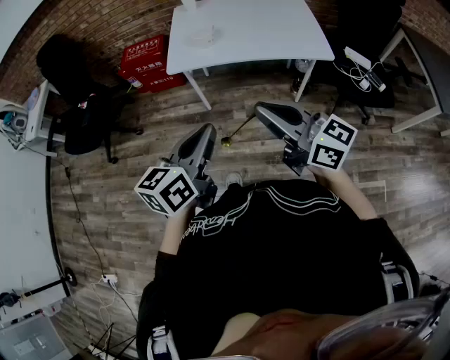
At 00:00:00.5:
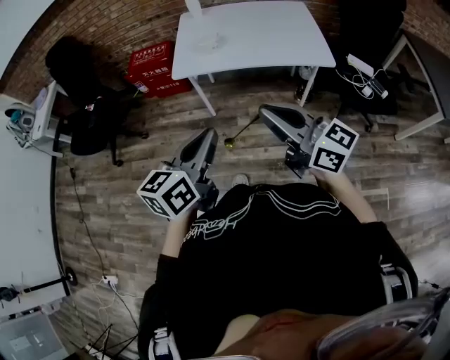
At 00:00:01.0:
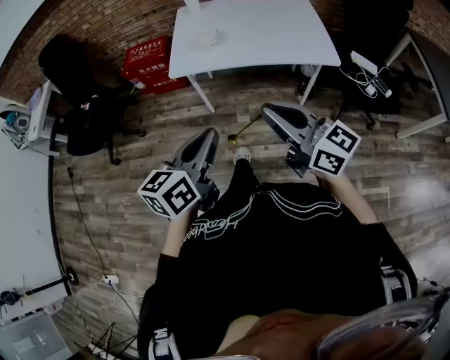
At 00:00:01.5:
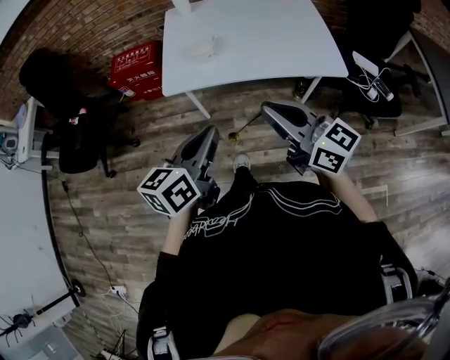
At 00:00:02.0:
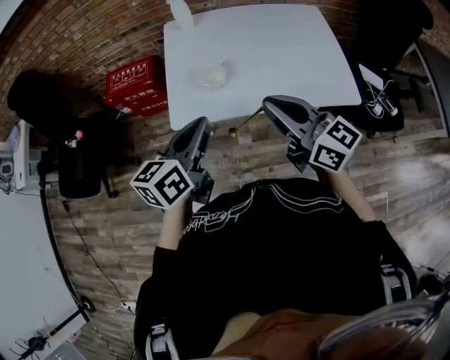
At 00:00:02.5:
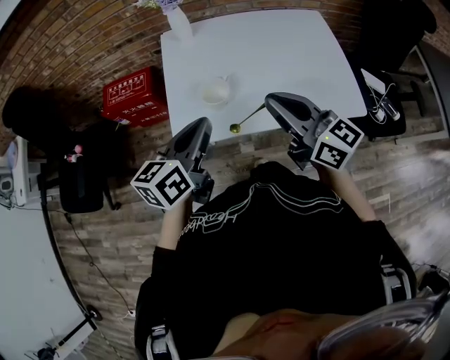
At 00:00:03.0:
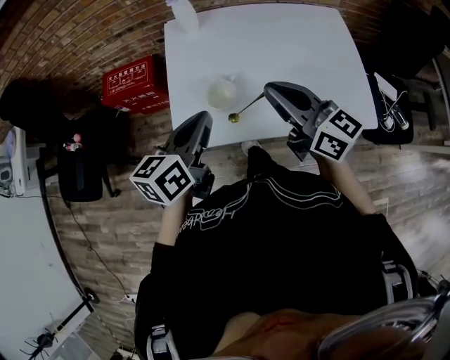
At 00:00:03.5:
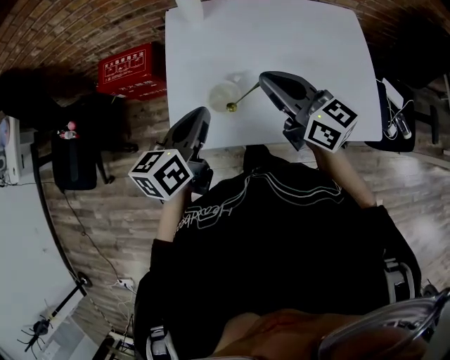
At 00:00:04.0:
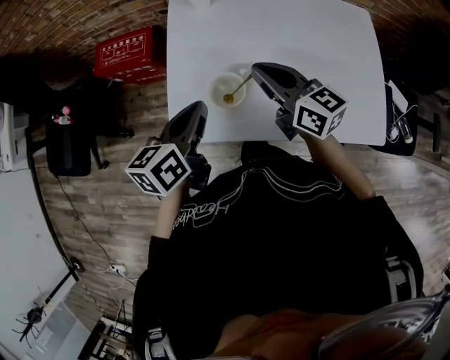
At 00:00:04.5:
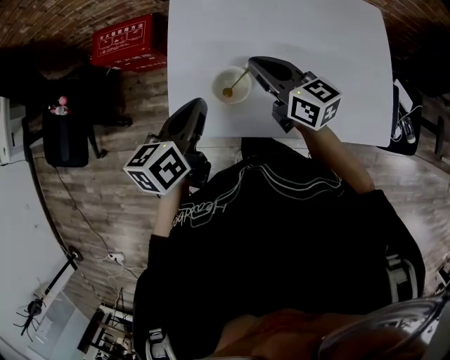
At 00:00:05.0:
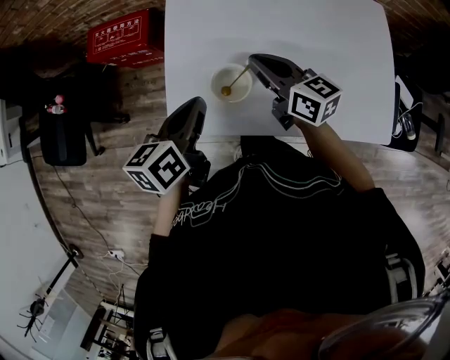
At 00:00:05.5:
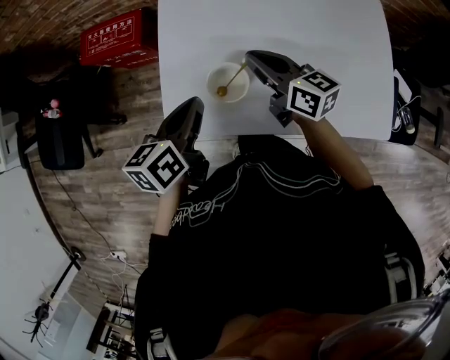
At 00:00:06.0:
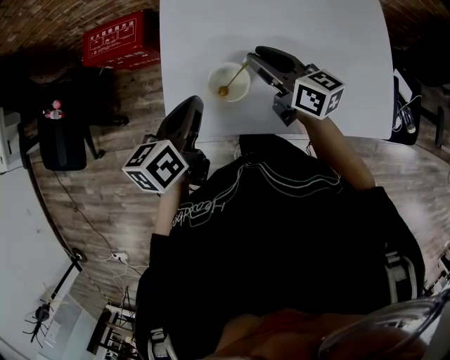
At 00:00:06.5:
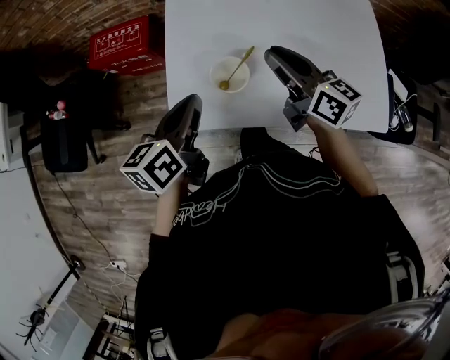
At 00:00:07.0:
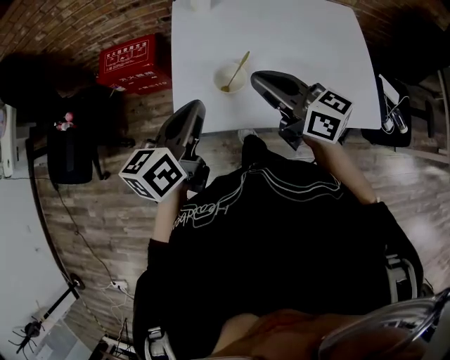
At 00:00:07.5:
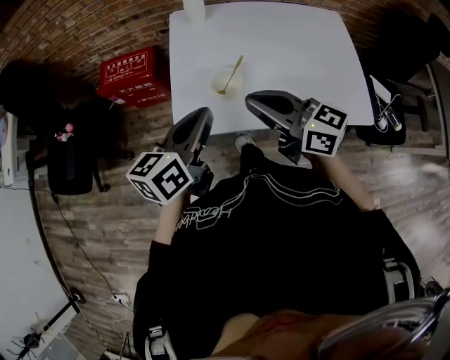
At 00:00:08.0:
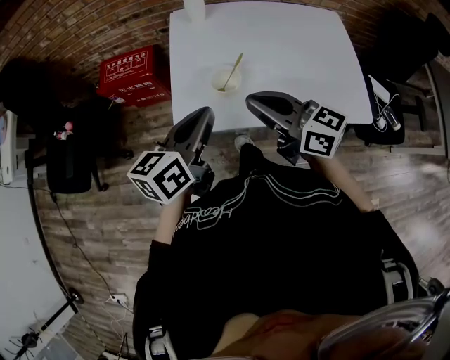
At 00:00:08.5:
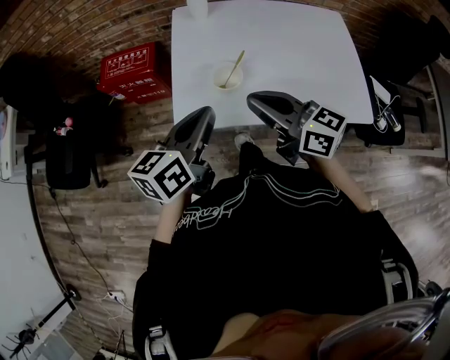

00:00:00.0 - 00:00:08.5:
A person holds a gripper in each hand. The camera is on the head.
00:00:00.0 - 00:00:02.0: Both grippers travel together forward, approximately 35 cm.
00:00:02.0 - 00:00:04.0: Both grippers travel together forward and downward, about 25 cm.
00:00:06.5 - 00:00:08.5: The right gripper moves backward, to the left and upward, some 20 cm, while the left gripper goes some 10 cm backward and upward.

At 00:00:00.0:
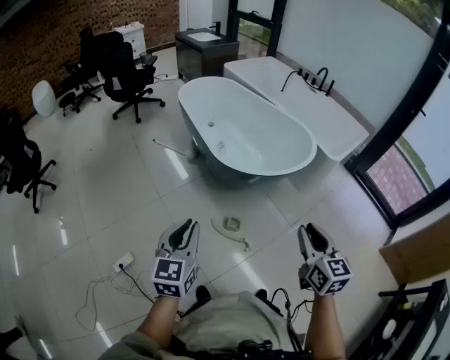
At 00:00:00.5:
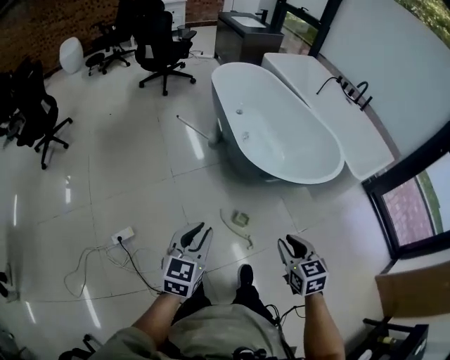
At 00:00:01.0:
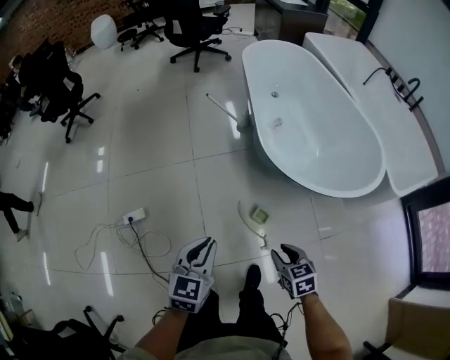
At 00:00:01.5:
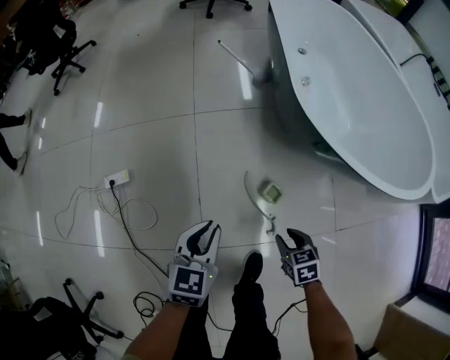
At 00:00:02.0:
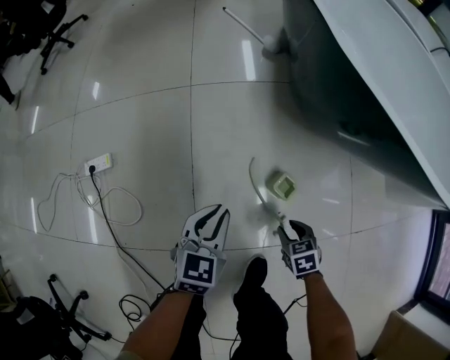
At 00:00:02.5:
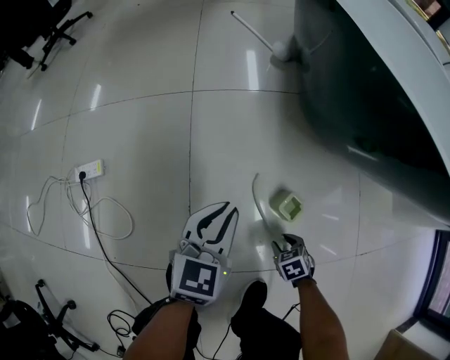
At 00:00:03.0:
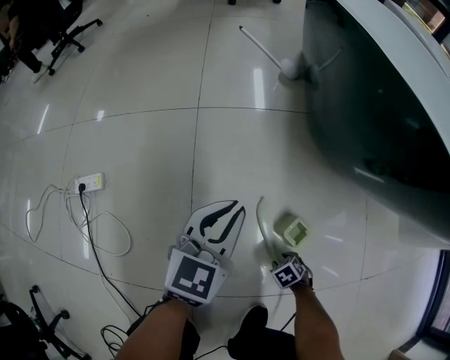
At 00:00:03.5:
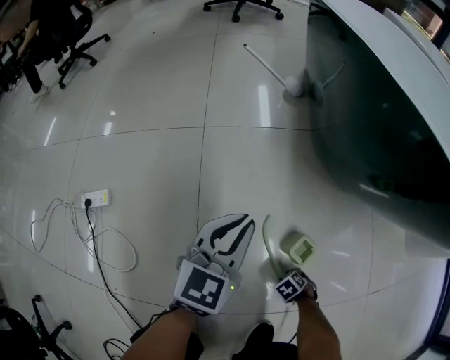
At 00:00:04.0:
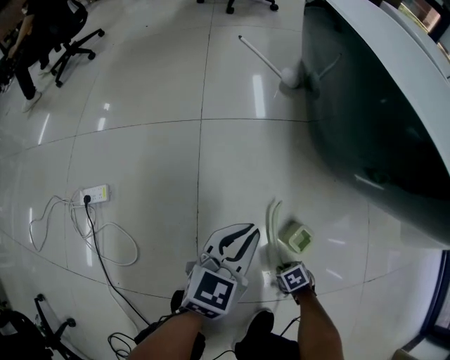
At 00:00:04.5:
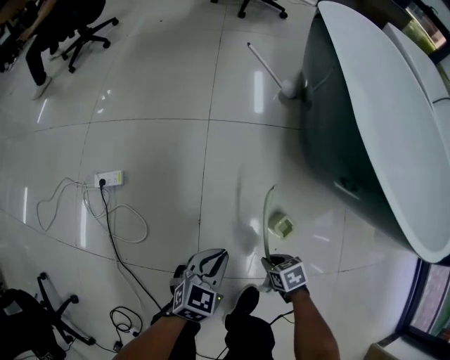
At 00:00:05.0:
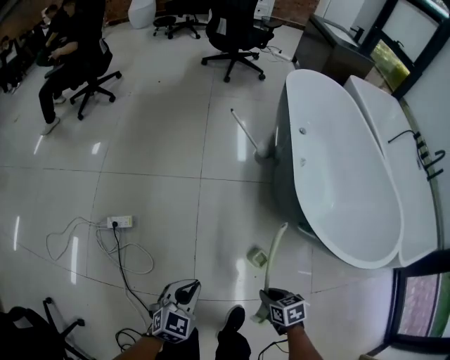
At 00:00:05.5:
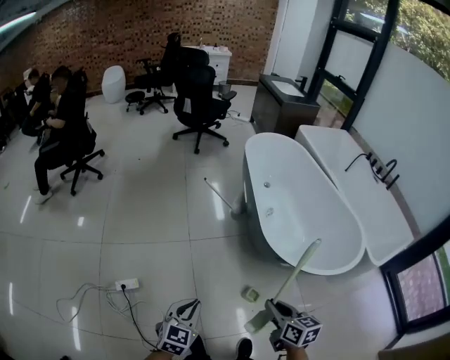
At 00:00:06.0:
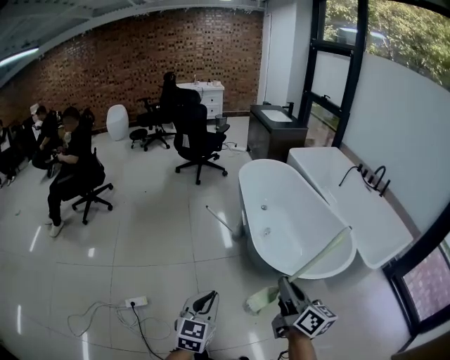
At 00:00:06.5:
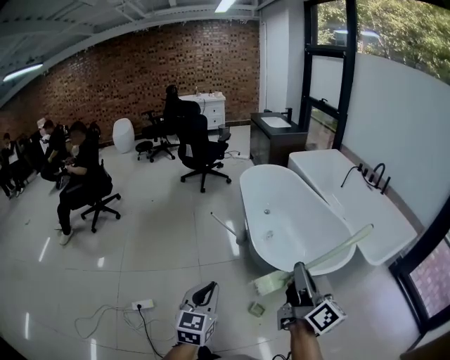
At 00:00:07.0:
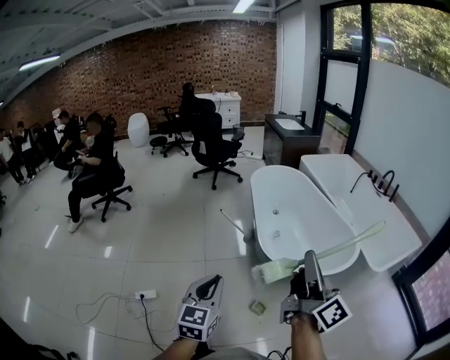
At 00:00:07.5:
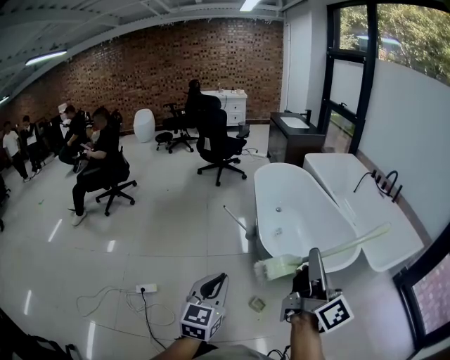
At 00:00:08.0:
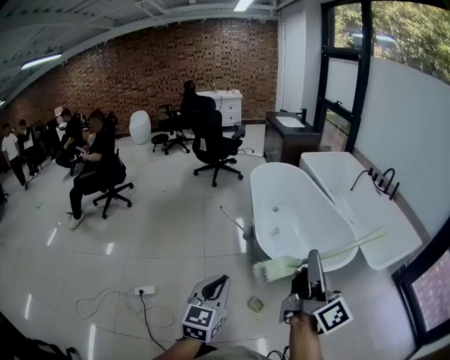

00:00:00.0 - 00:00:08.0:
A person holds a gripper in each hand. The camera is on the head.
00:00:00.0 - 00:00:02.0: Both grippers travel together downward, about 1 m. The right gripper angles its fingers downward, by roughly 50 degrees, while the left gripper swivels some 30 degrees.
00:00:02.0 - 00:00:04.0: The right gripper goes some 25 cm downward, changes its angle by roughly 20 degrees, and closes up. Meanwhile the left gripper moves about 15 cm.
00:00:04.0 - 00:00:06.0: Both grippers move upward, roughly 1 m. The right gripper tips its fingers upward by about 80 degrees.
00:00:06.0 - 00:00:08.0: The right gripper moves to the right, backward and upward, roughly 30 cm, and changes its angle by some 30 degrees. The left gripper moves to the right and backward, some 20 cm.

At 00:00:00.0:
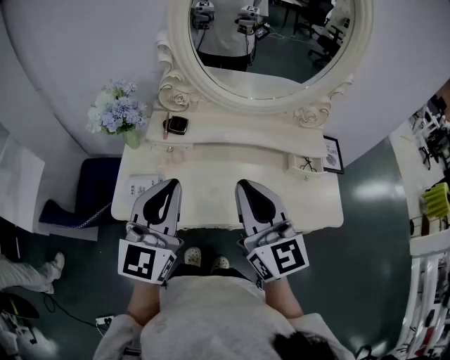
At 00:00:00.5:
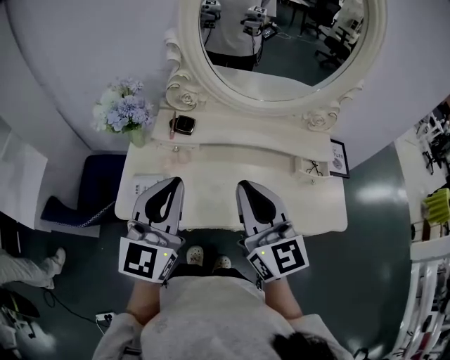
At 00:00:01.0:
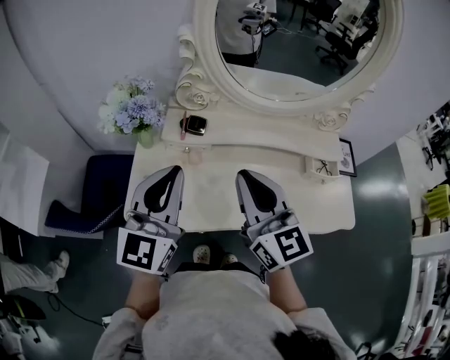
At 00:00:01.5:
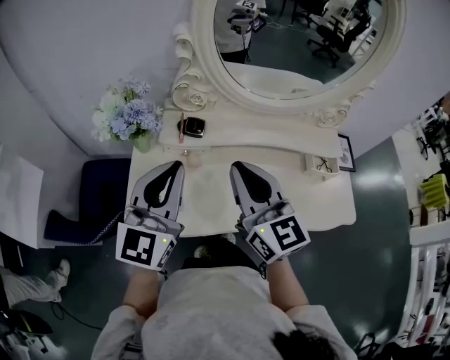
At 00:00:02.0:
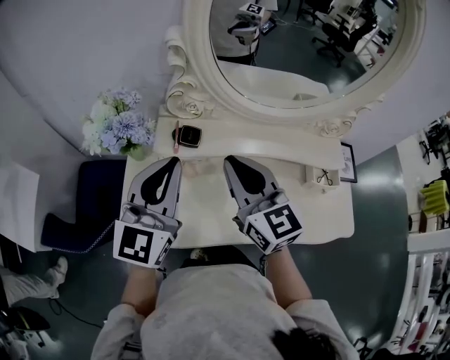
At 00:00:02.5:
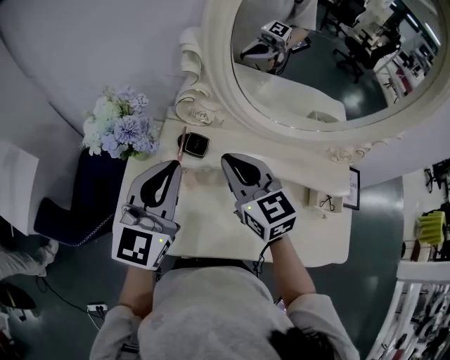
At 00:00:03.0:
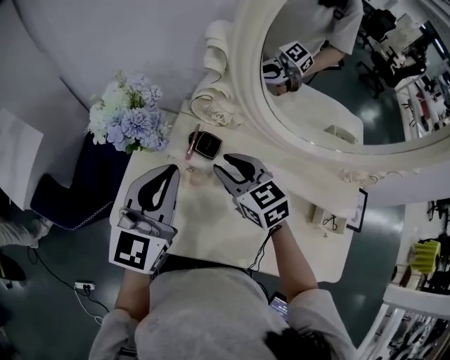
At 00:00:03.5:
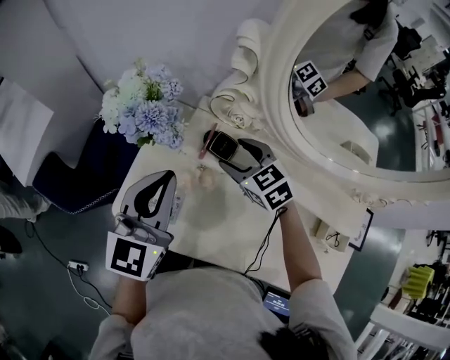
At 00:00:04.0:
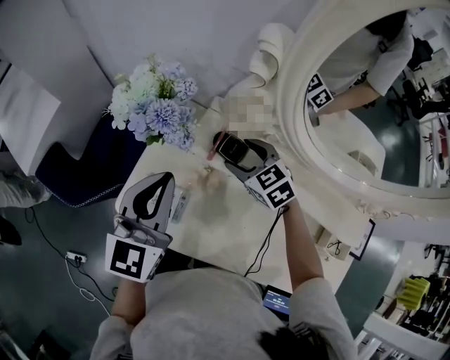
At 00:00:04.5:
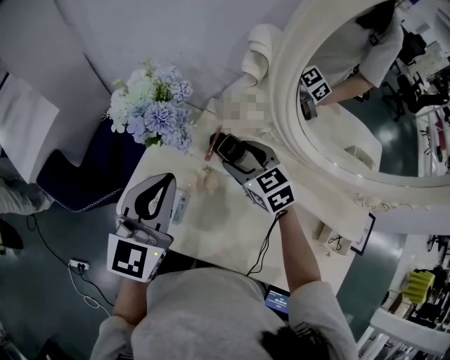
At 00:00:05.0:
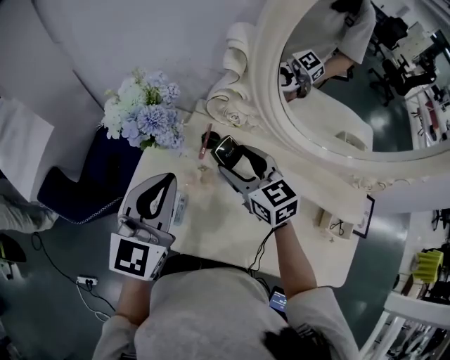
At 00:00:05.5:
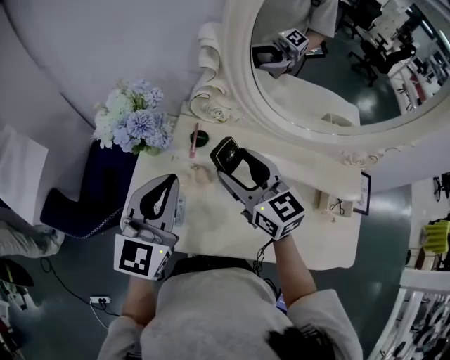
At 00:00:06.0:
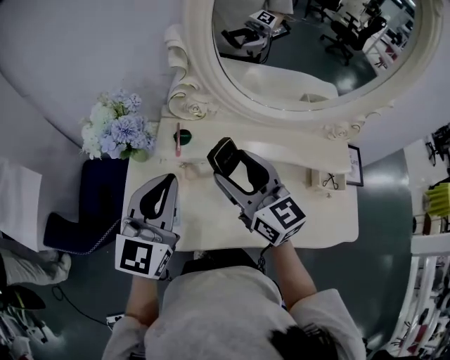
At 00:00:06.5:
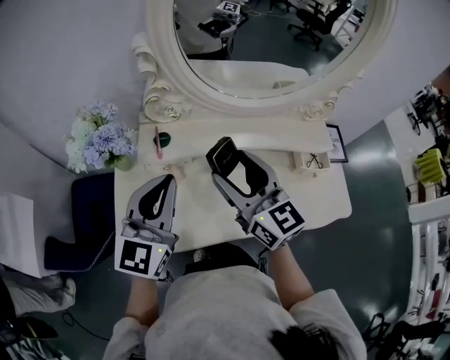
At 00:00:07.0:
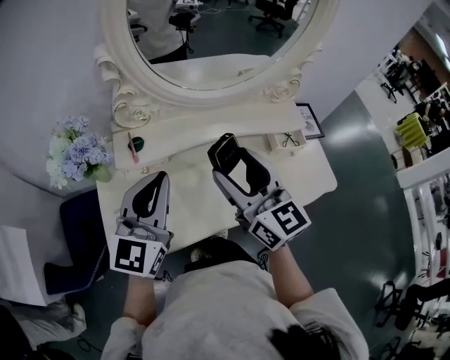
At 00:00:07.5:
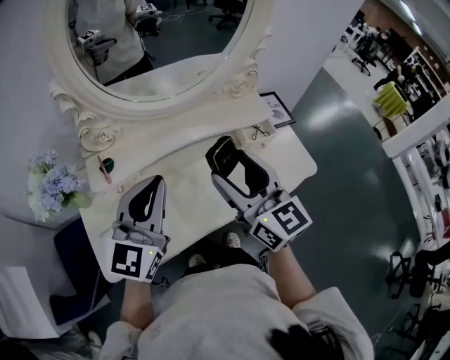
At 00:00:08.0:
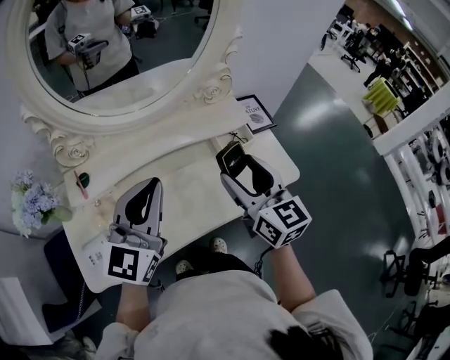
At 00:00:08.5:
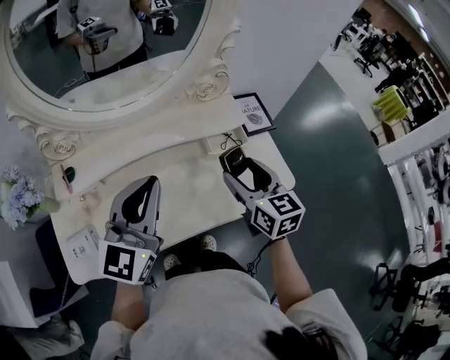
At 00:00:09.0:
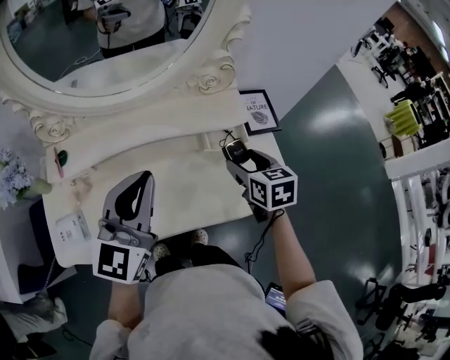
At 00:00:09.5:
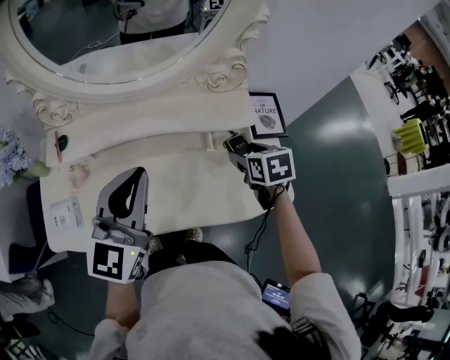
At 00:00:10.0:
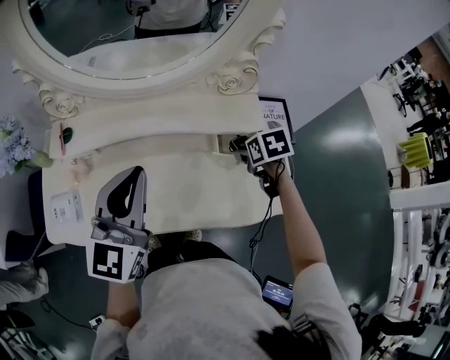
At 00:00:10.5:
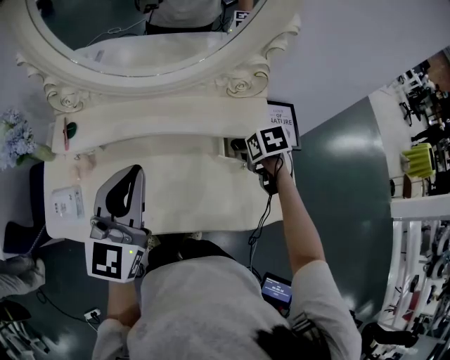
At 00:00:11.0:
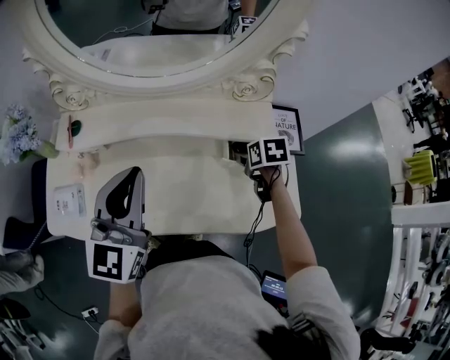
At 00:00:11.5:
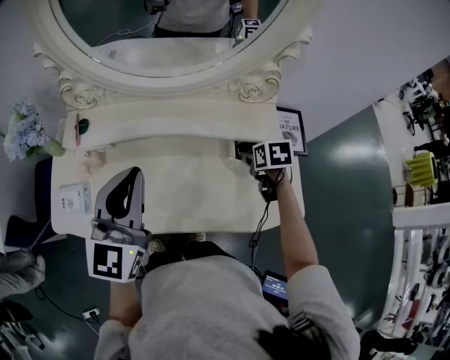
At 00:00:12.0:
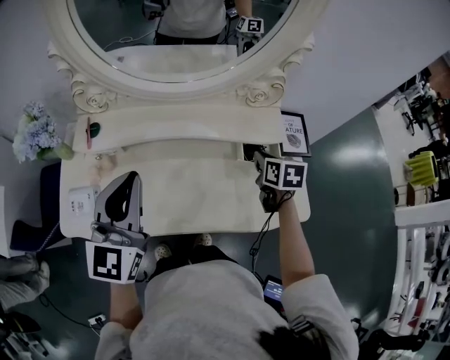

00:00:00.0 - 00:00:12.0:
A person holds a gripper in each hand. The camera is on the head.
00:00:00.0 - 00:00:02.0: The right gripper moves forward and to the left, roughly 15 cm. The left gripper is displaced forward by some 15 cm.
00:00:02.0 - 00:00:04.0: The left gripper goes about 10 cm downward, and changes its angle by roughly 30 degrees. Meanwhile the right gripper shifts some 20 cm downward, tilts its fingers some 40 degrees downward, and opens.
00:00:04.0 - 00:00:06.0: The right gripper moves upward and backward, roughly 20 cm, and tips its fingers upward by roughly 40 degrees. Meanwhile the left gripper shifts about 10 cm to the right and upward, and swivels some 20 degrees.
00:00:06.0 - 00:00:08.0: The left gripper shifts by some 25 cm, and swivels about 30 degrees, while the right gripper changes place by approximately 30 cm, and rotates approximately 40 degrees.
00:00:08.0 - 00:00:10.0: The left gripper travels to the right by about 5 cm, and changes its angle by about 20 degrees, while the right gripper heads downward, forward and to the right, covering about 30 cm, and tilts its fingers roughly 60 degrees downward.
00:00:10.0 - 00:00:12.0: The right gripper moves approximately 5 cm, turns by roughly 20 degrees, and closes its fingers. The left gripper shifts roughly 10 cm to the left.
